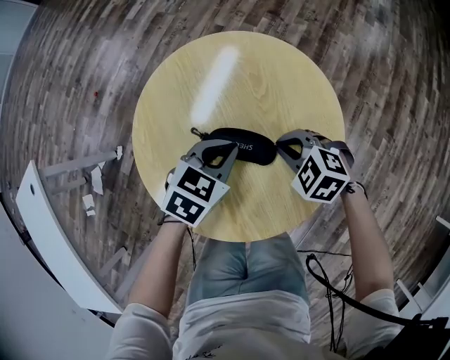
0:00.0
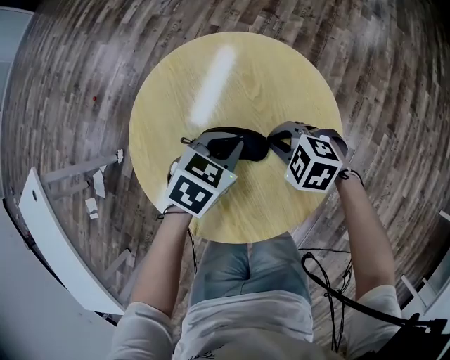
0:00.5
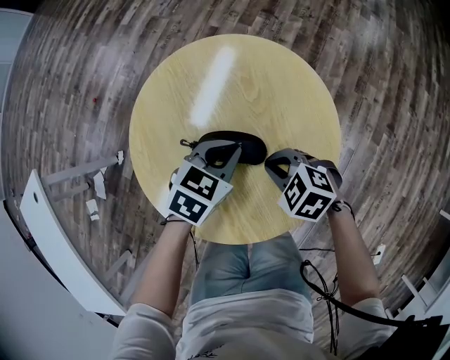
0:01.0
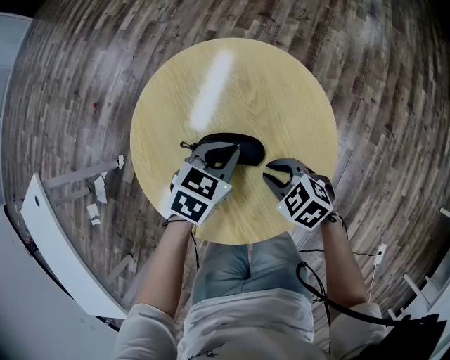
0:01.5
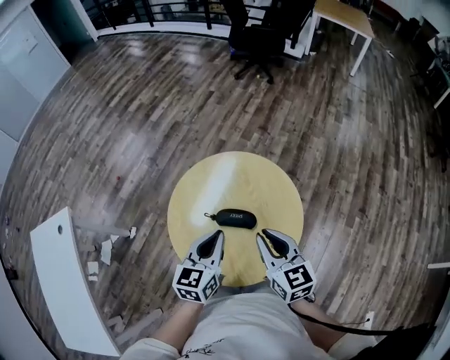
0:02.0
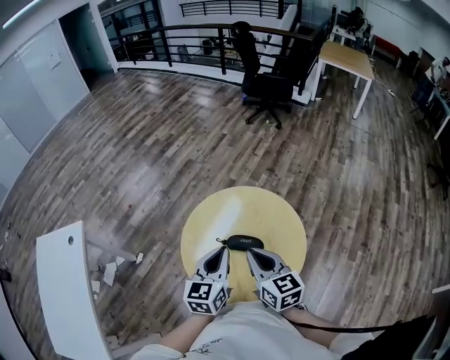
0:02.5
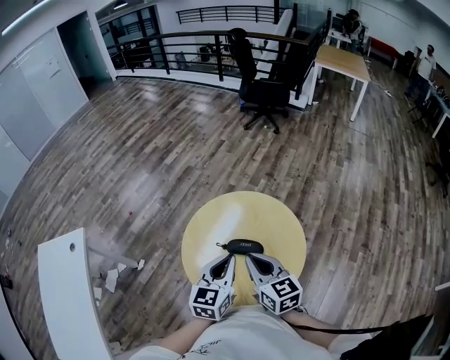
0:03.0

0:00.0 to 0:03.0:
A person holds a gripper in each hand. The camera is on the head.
0:00.0 to 0:01.5: The right gripper ends up roughly 5 cm from where it was, and turns by approximately 20 degrees.
0:01.5 to 0:03.0: The two grippers go approximately 30 cm upward. The left gripper tilts its fingers roughly 30 degrees upward. The right gripper tips its fingers upward by some 40 degrees.

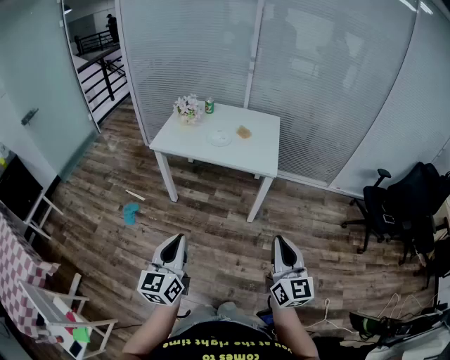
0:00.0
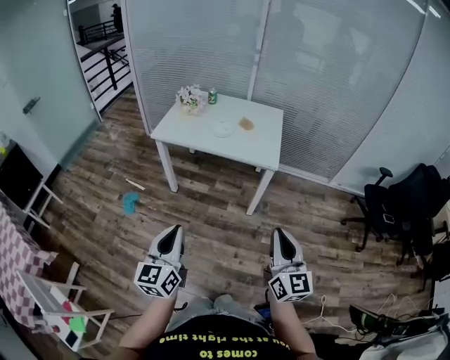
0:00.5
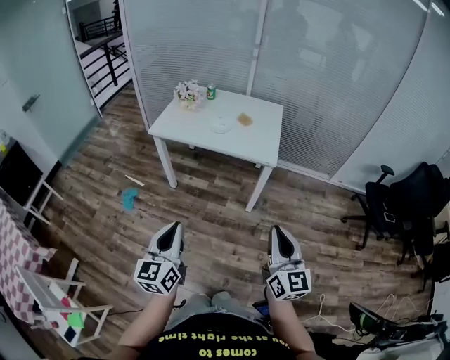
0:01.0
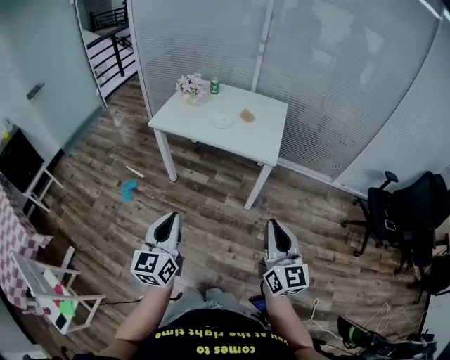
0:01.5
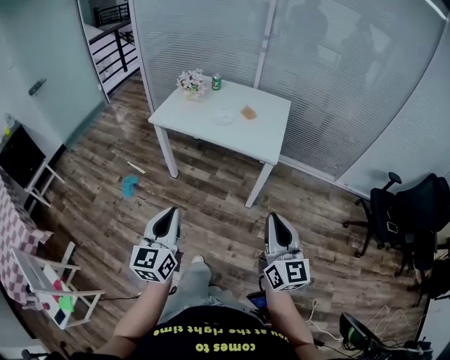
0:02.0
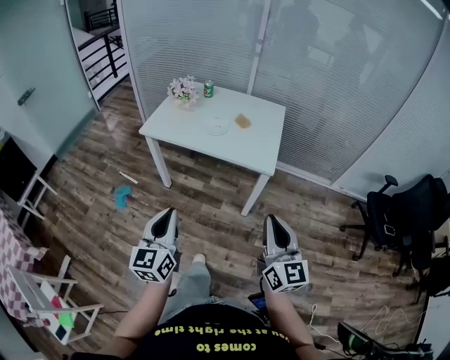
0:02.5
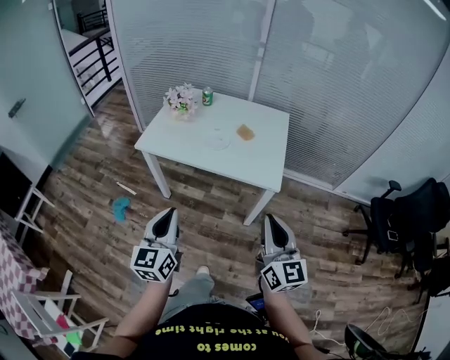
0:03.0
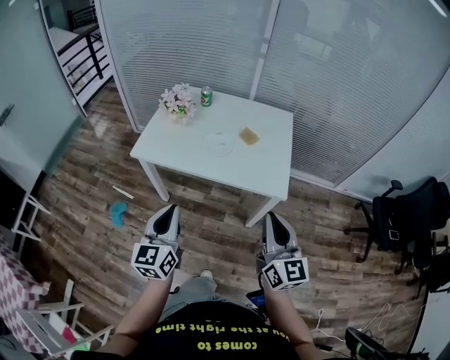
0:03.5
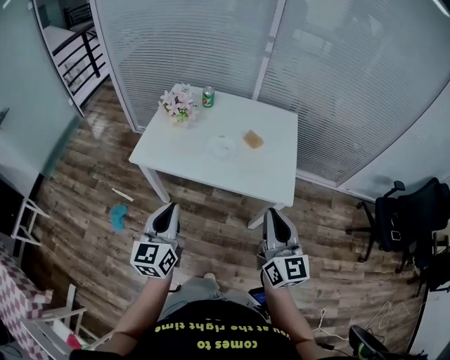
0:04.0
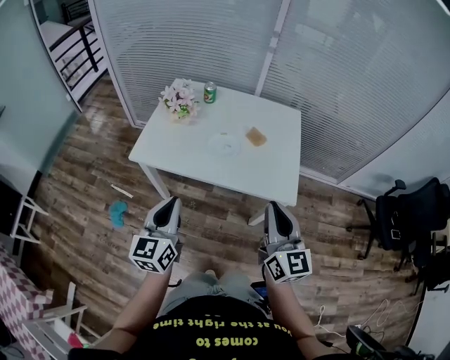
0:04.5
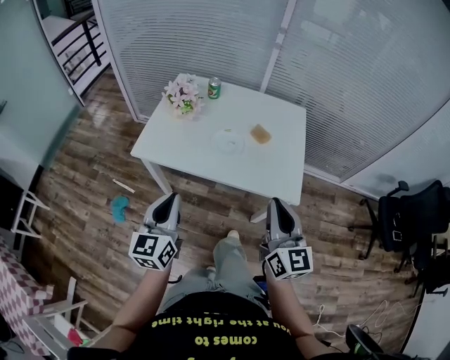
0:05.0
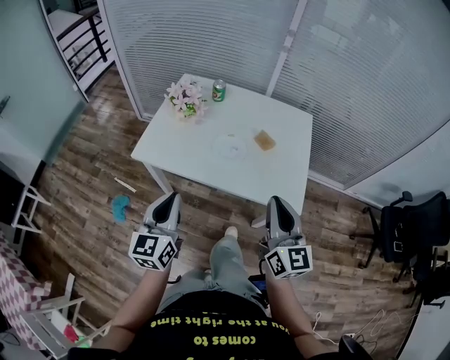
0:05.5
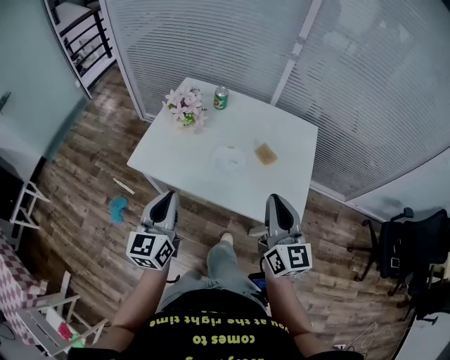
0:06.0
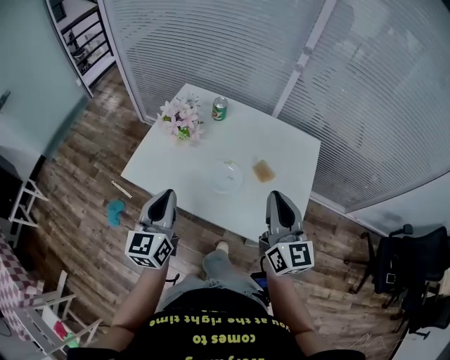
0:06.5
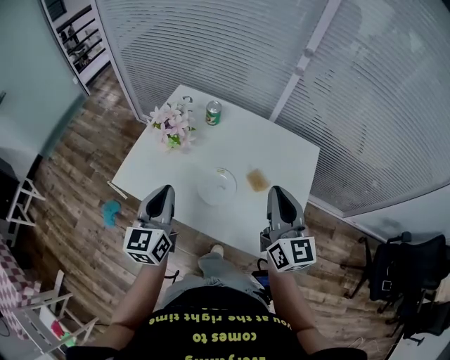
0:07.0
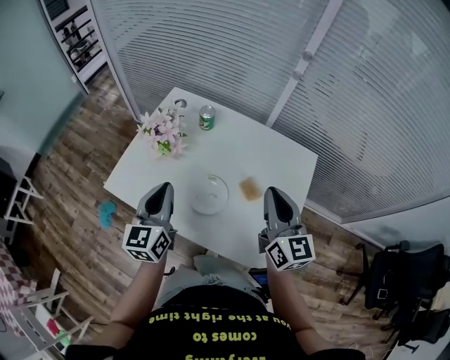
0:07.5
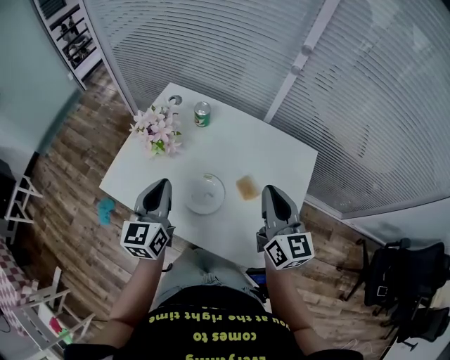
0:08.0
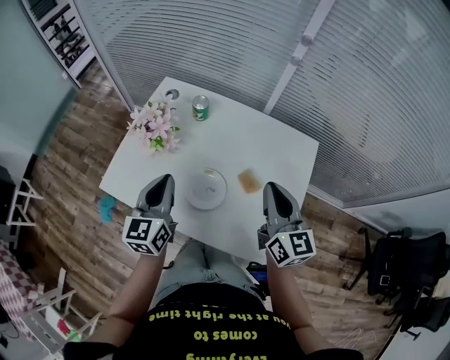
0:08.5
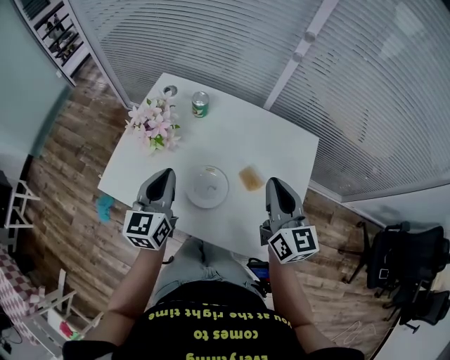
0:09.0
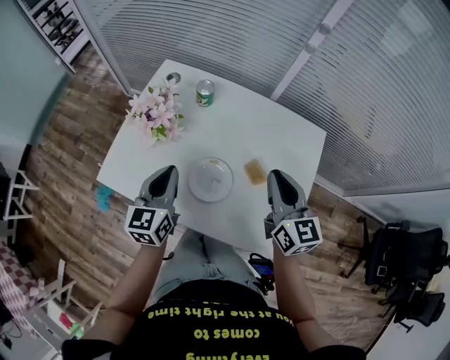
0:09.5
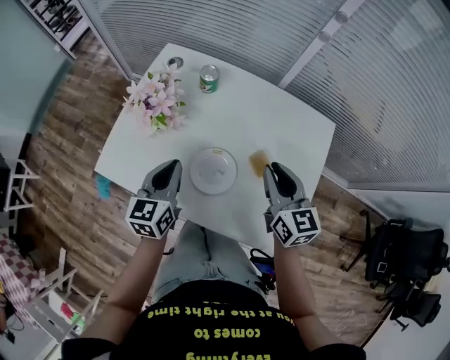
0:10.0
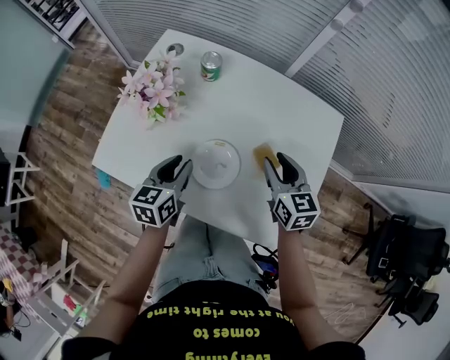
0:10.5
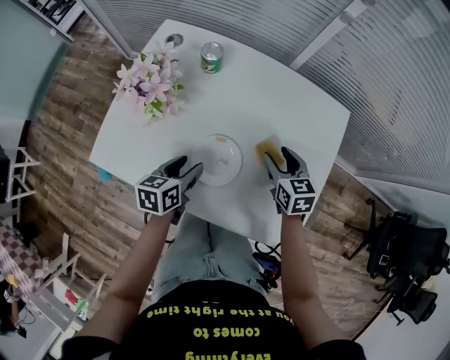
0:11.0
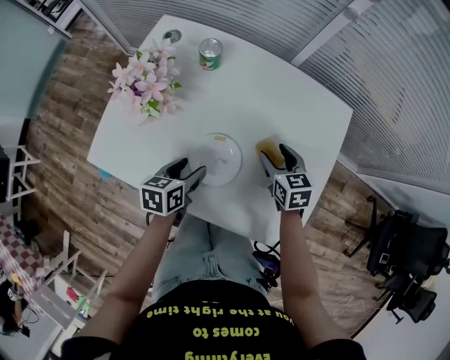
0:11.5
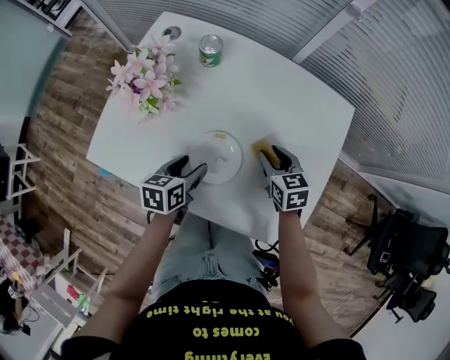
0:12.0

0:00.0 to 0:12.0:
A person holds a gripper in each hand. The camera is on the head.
0:00.0 to 0:02.0: The left gripper is displaced to the right by approximately 5 cm; the right gripper shifts about 5 cm forward.
0:02.0 to 0:04.0: Both grippers travel together forward, approximately 35 cm.
0:04.0 to 0:06.0: Both grippers move forward, about 15 cm.
0:06.0 to 0:08.0: Both grippers move forward and to the right, roughly 20 cm.
0:08.0 to 0:10.0: The two grippers go approximately 10 cm downward.
0:10.0 to 0:12.0: Both grippers travel together downward, approximately 15 cm. The right gripper turns by roughly 30 degrees, and opens, then closes once more. The left gripper swivels roughly 30 degrees, and opens.

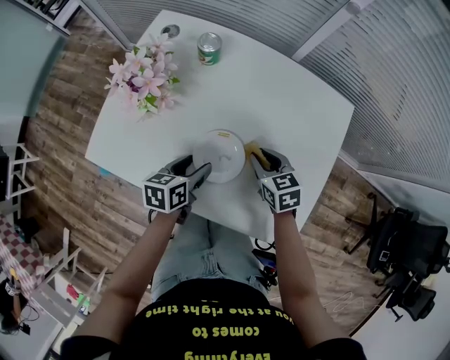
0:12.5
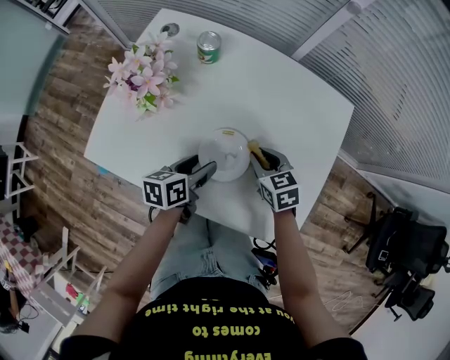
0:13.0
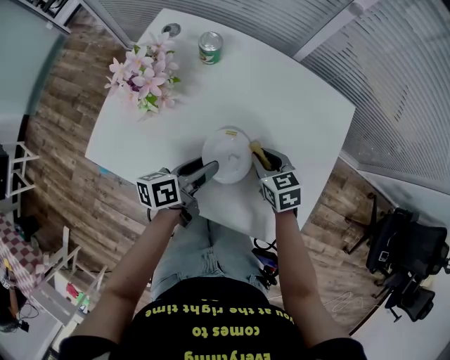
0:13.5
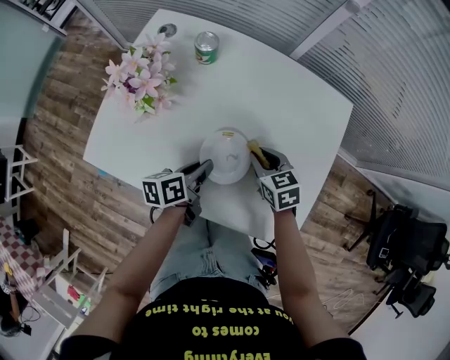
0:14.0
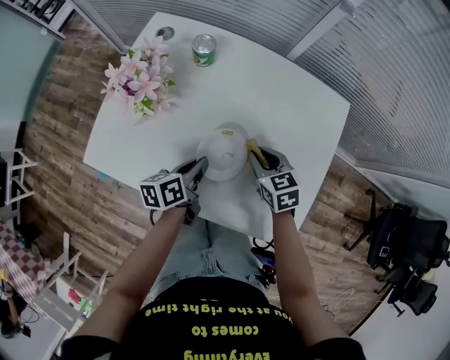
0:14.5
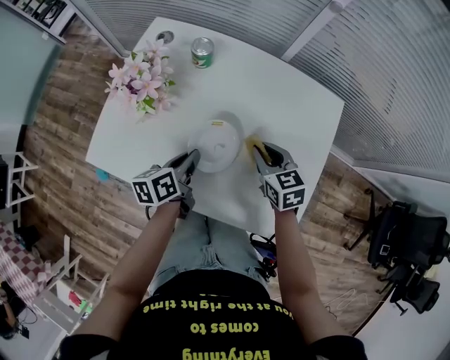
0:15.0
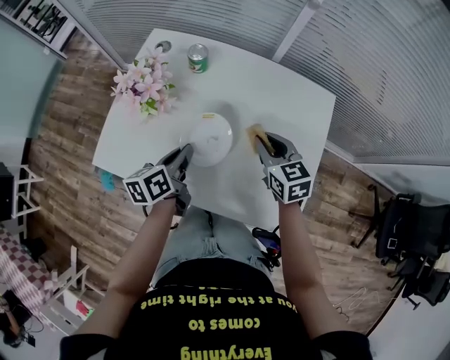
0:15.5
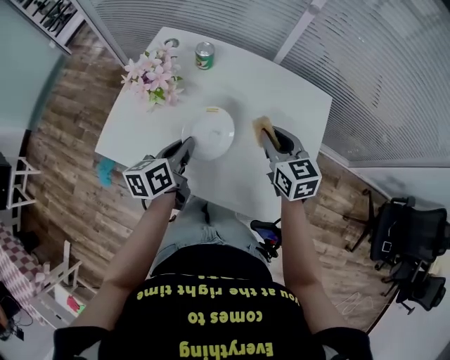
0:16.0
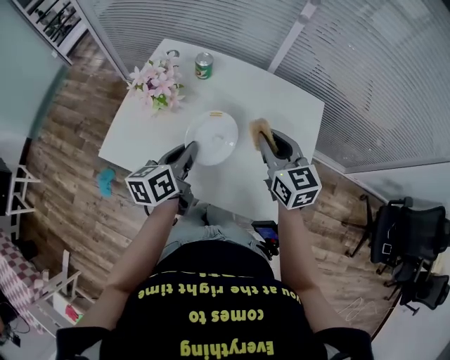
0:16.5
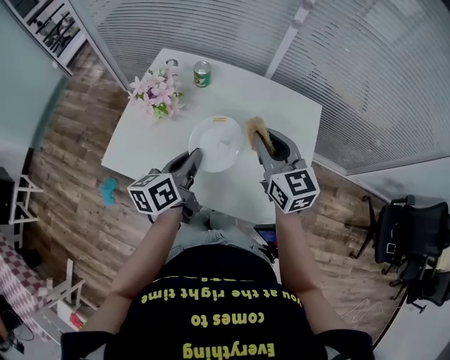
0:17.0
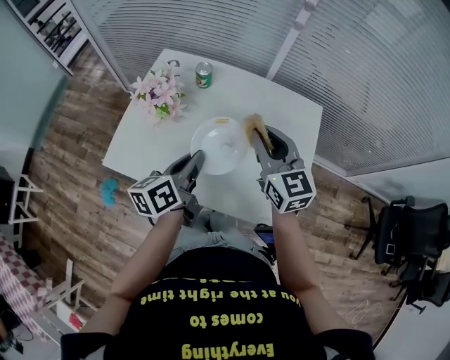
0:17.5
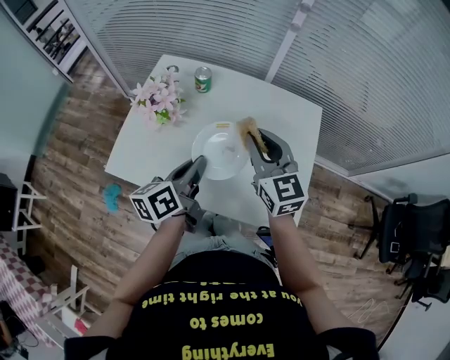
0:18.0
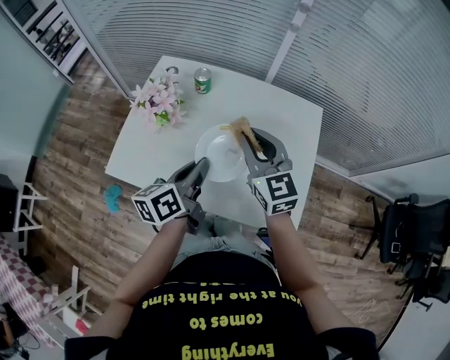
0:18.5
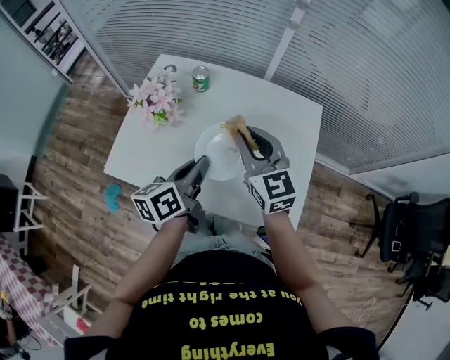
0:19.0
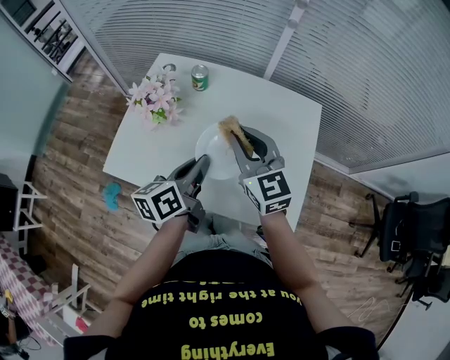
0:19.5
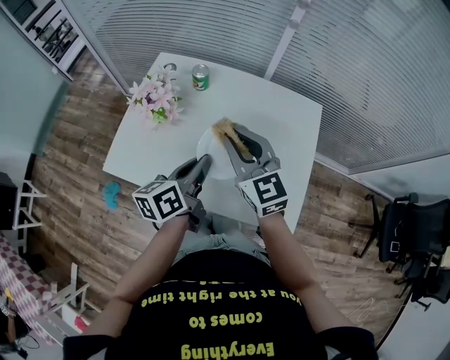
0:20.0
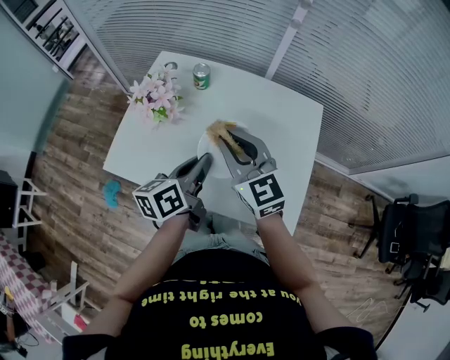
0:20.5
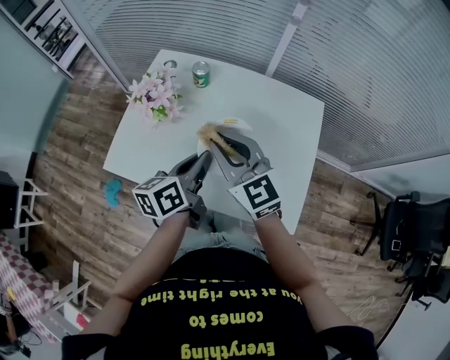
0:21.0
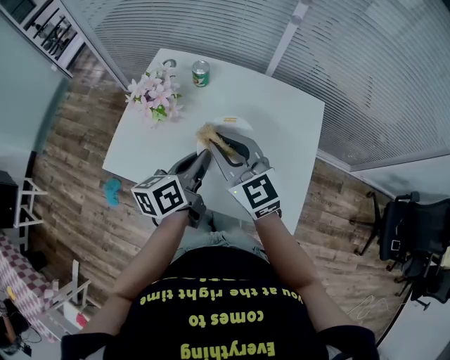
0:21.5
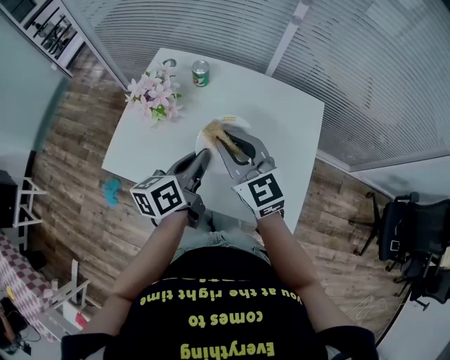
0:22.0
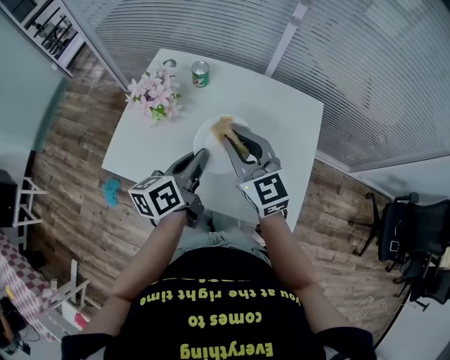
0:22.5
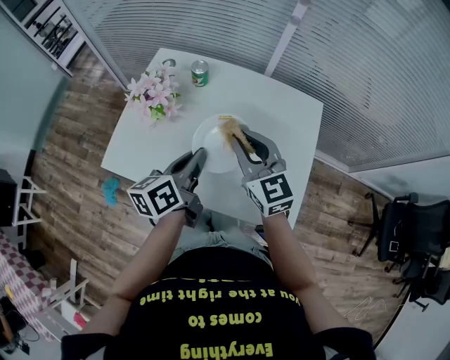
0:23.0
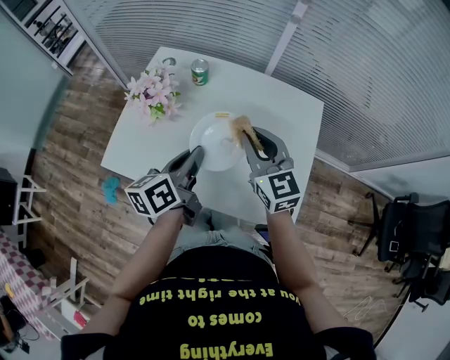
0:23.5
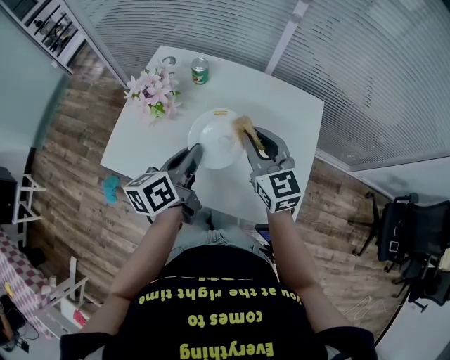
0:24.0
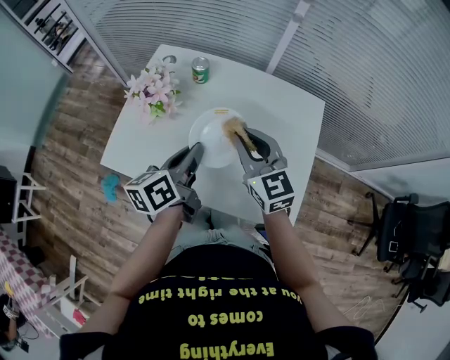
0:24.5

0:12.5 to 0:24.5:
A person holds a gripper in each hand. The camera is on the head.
0:12.5 to 0:14.5: The left gripper closes.
0:14.5 to 0:16.5: Both grippers move upward, about 15 cm. The right gripper changes its angle by roughly 30 degrees. Meanwhile the left gripper changes its angle by about 20 degrees.
0:16.5 to 0:18.5: The right gripper moves to the left, some 5 cm.
0:18.5 to 0:20.5: The right gripper ends up about 5 cm from where it was.
0:20.5 to 0:22.5: The grippers move only a little.
0:22.5 to 0:24.5: The grippers move only a little.
